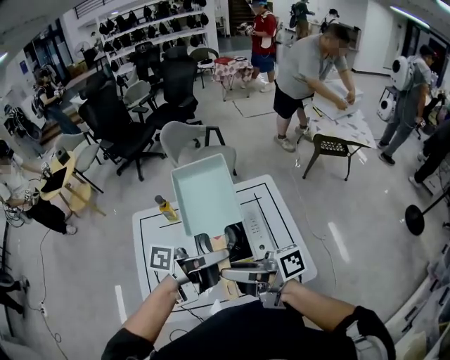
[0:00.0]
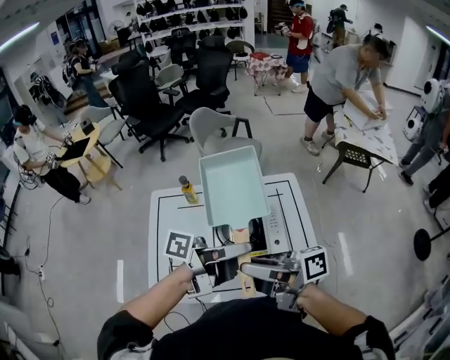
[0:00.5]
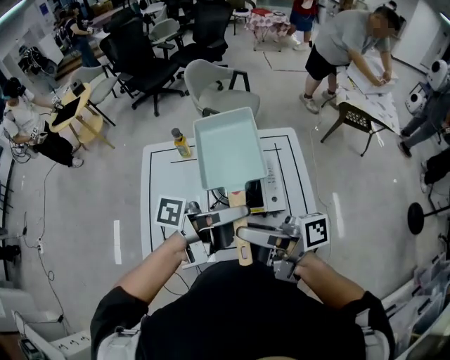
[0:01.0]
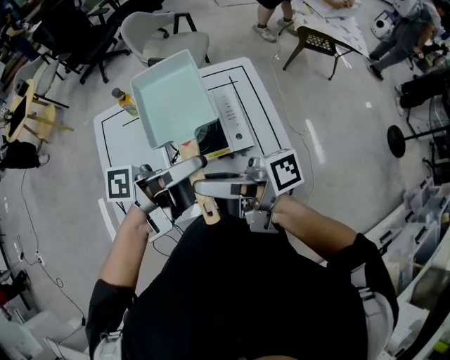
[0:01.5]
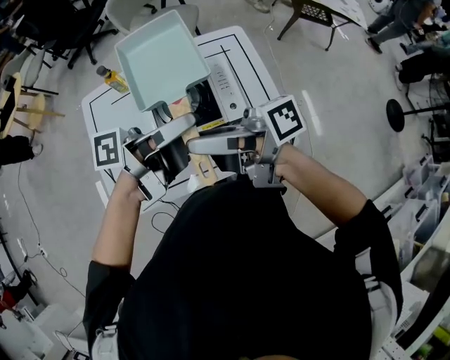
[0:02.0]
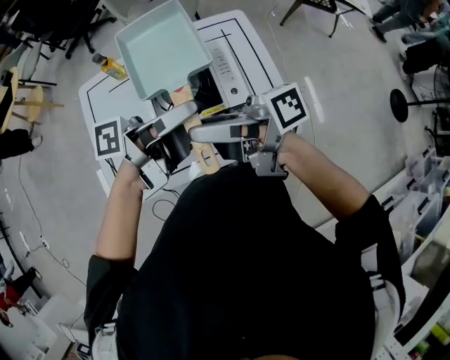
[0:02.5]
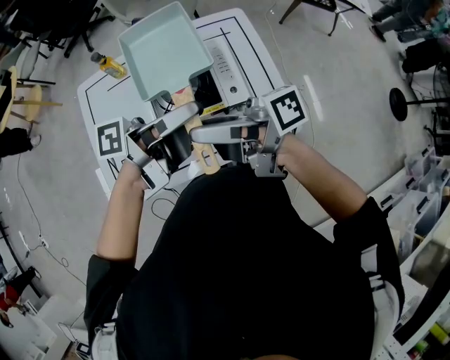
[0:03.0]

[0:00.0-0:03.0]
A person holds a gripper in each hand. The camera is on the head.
0:00.0 to 0:01.5: The grippers move only a little.
0:01.5 to 0:03.0: The left gripper shifts by about 5 cm.

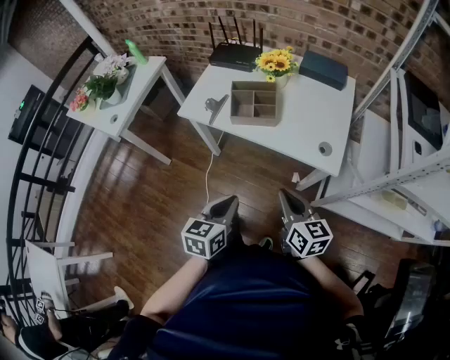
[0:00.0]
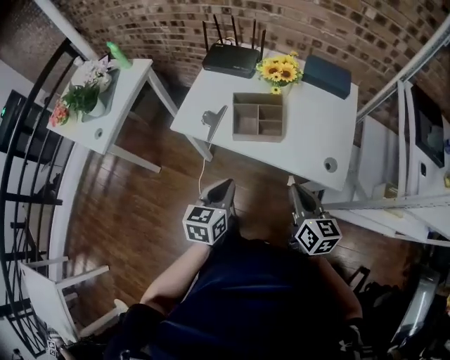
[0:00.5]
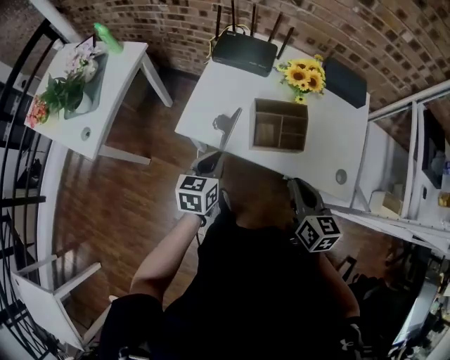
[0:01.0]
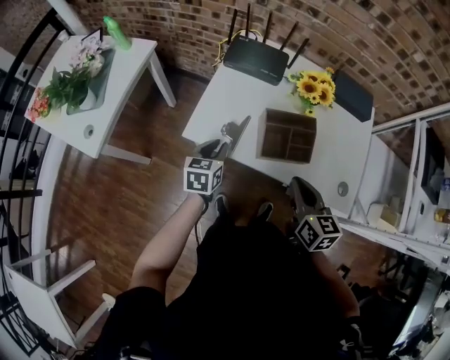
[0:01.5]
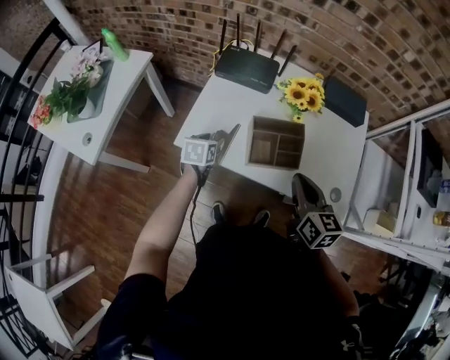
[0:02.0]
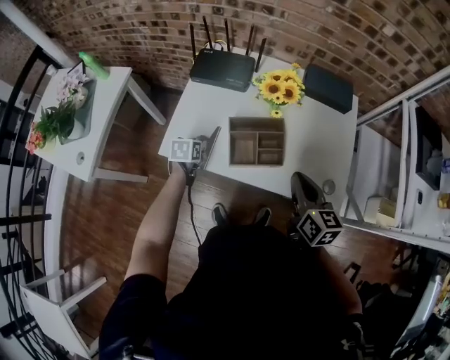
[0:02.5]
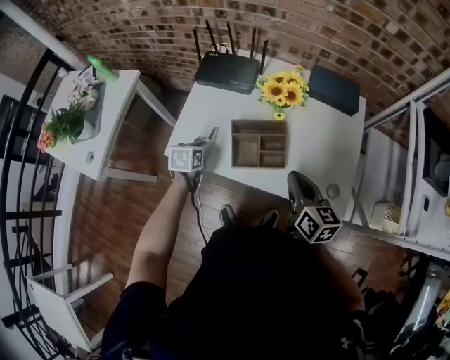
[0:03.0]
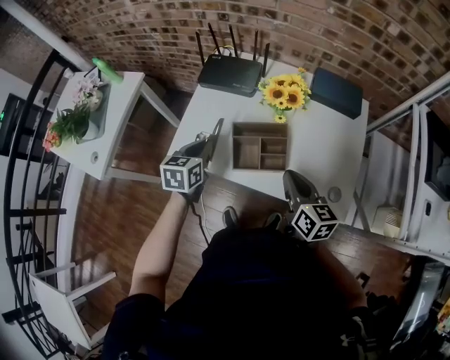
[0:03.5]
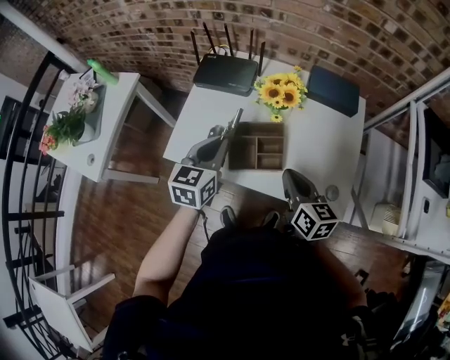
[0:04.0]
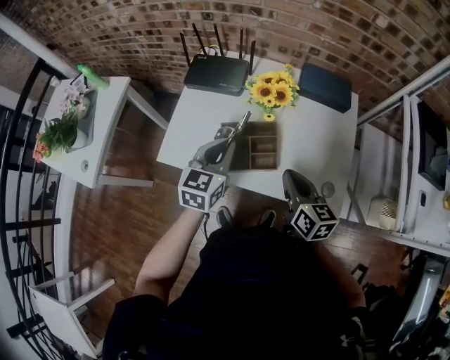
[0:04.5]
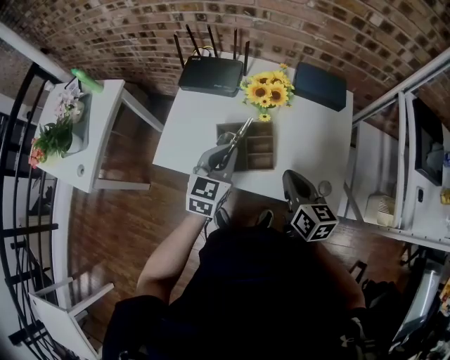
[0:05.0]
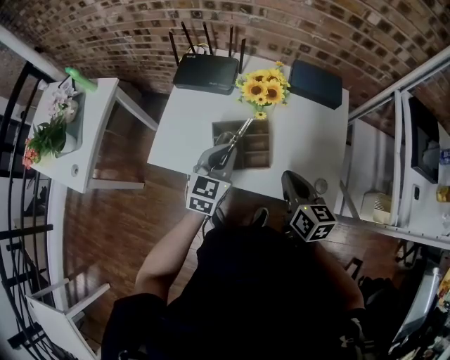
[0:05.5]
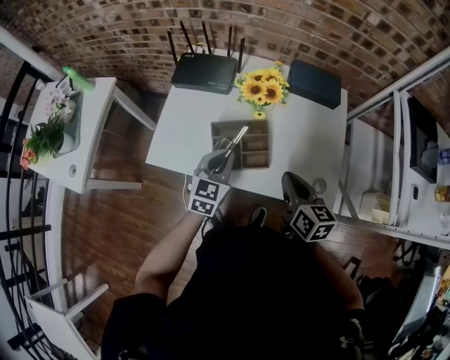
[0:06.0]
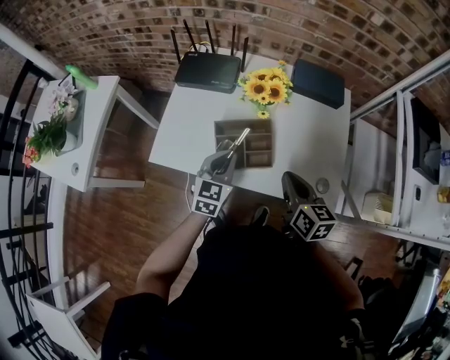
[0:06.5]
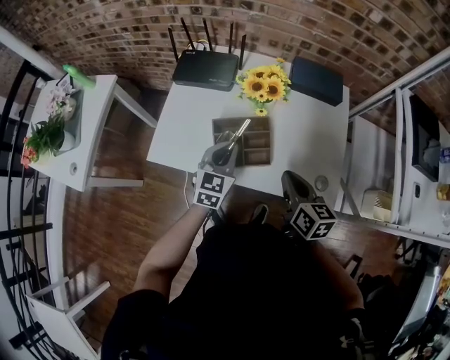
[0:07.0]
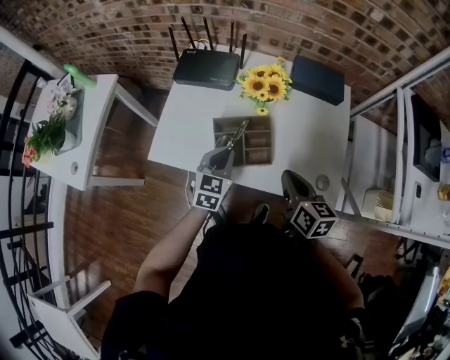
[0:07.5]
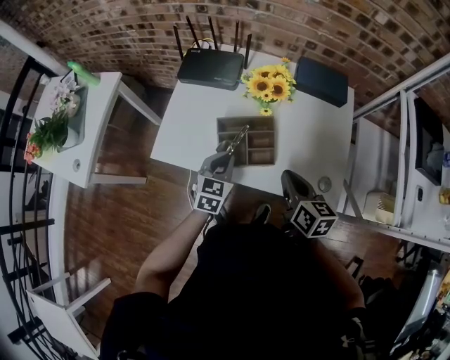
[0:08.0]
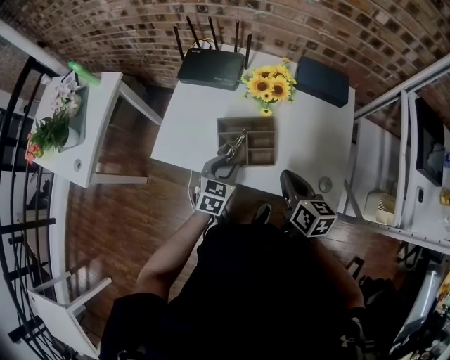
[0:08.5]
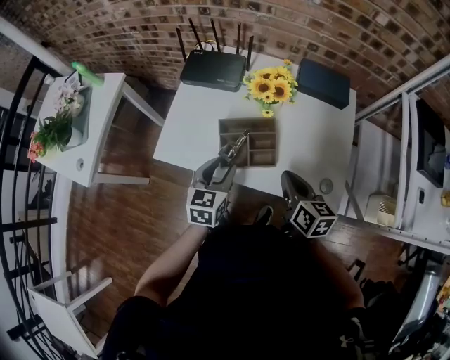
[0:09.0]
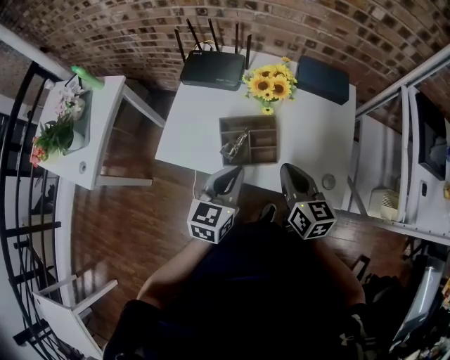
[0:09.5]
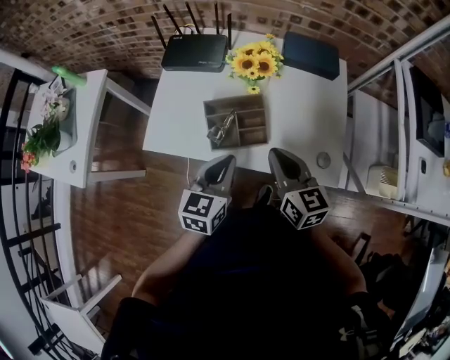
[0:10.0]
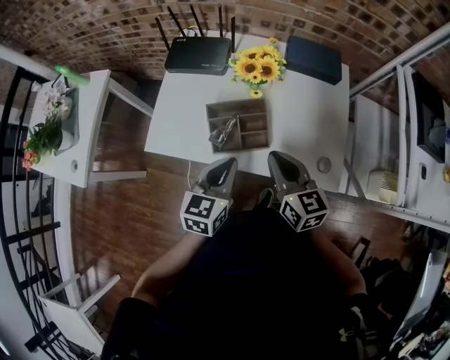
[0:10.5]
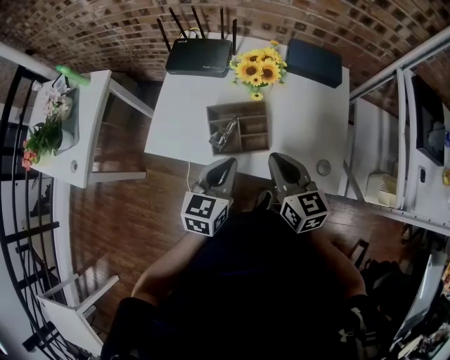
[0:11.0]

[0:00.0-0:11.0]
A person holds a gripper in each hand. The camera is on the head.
0:00.0 to 0:02.0: The right gripper heads forward, covering about 25 cm. The left gripper is displaced forward and to the left by about 50 cm, and opens.
0:02.0 to 0:03.5: The left gripper moves upward, some 10 cm, and closes up. Meanwhile the right gripper ends up approximately 5 cm from where it was.
0:03.5 to 0:05.5: The left gripper travels to the right by about 15 cm, and swivels about 30 degrees.
0:05.5 to 0:07.5: The left gripper goes some 5 cm downward.
0:07.5 to 0:09.0: The left gripper shifts by some 5 cm, and opens.
0:09.0 to 0:11.0: The left gripper moves some 5 cm, and closes its fingers.

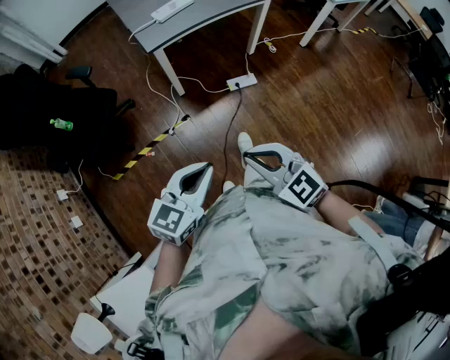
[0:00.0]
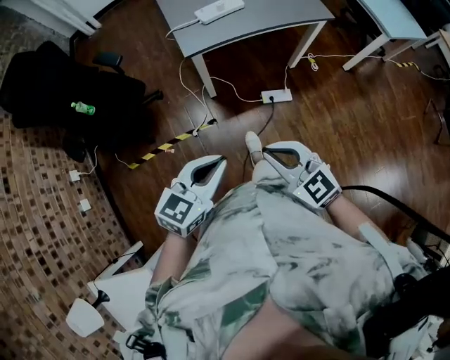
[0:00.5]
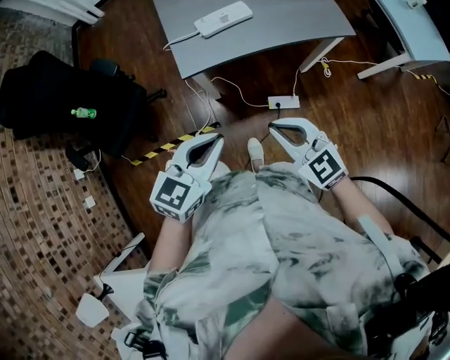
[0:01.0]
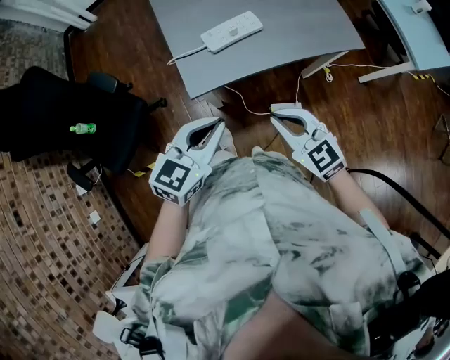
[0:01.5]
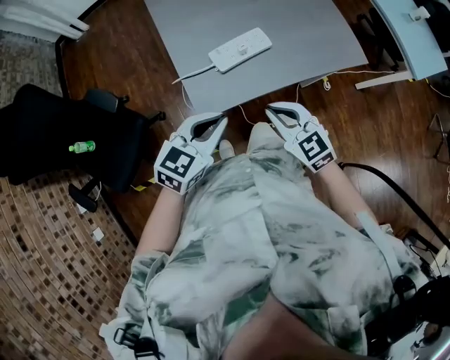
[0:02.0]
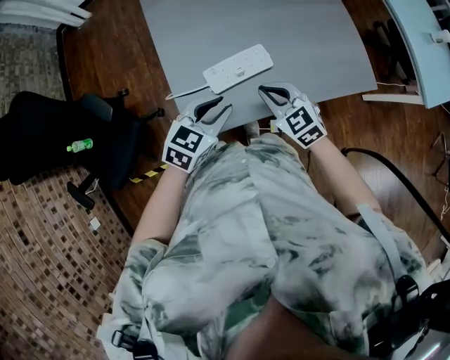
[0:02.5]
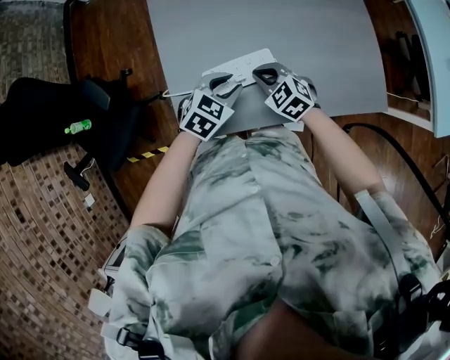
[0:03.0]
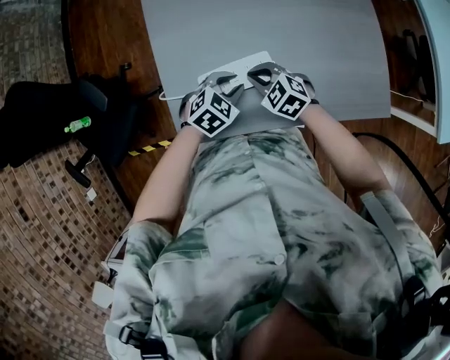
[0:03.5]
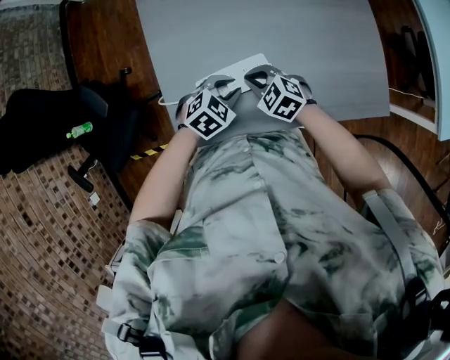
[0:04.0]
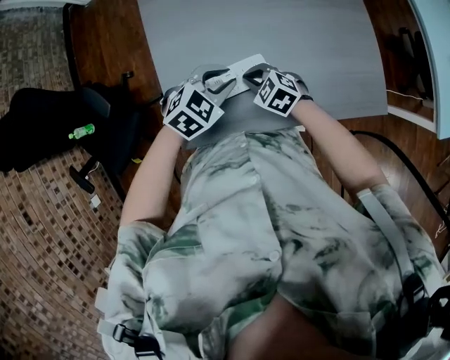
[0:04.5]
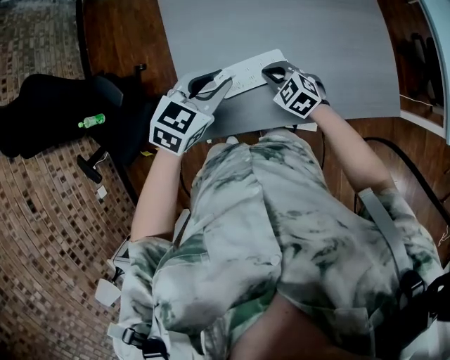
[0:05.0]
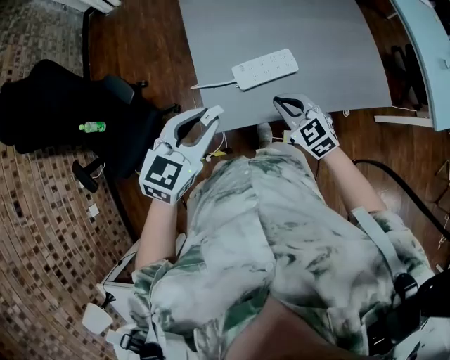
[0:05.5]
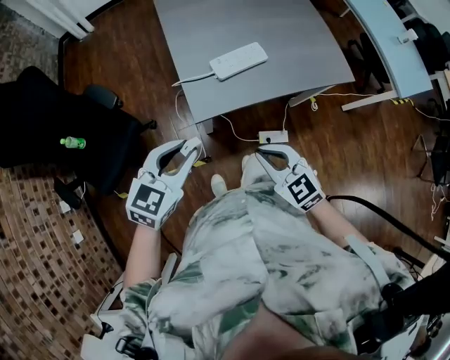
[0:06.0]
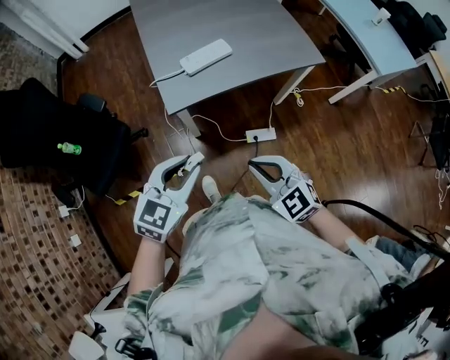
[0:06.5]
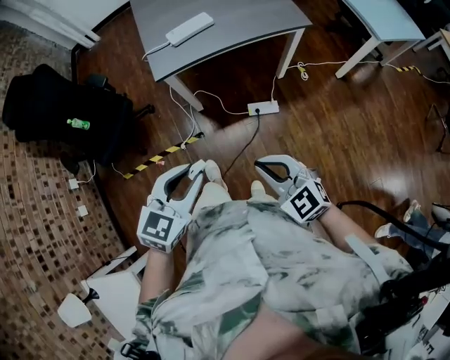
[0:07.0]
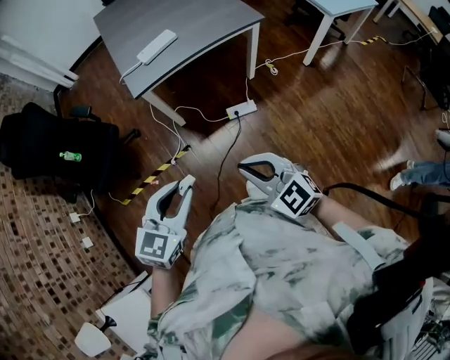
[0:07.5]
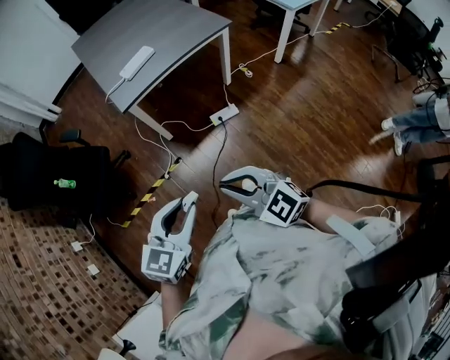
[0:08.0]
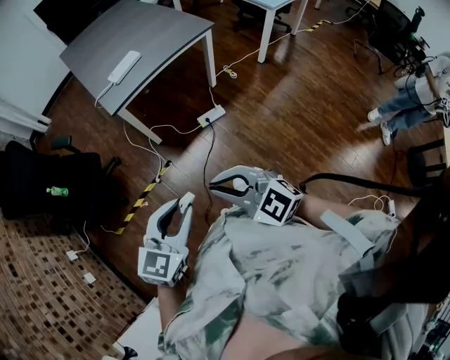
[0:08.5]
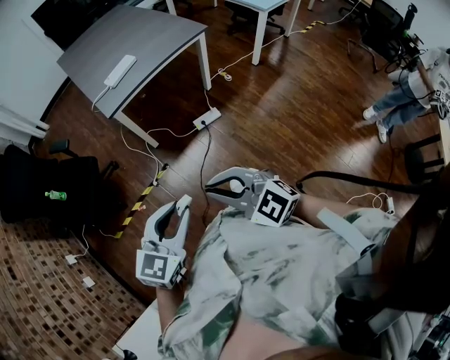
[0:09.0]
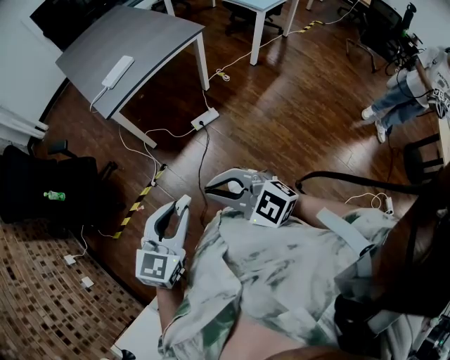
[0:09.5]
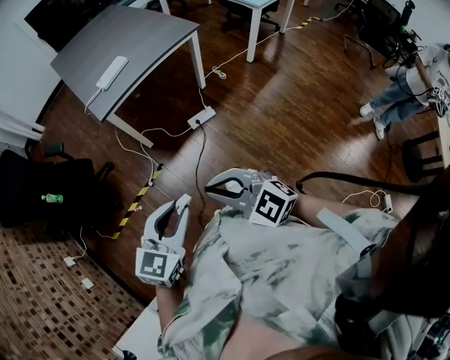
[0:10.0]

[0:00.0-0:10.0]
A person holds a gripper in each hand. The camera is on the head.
0:00.0 to 0:02.0: Both grippers are carried forward, approximately 50 cm.
0:02.0 to 0:04.0: The left gripper moves approximately 30 cm, angles its fingers downward, by approximately 30 degrees, and opens. Meanwhile the right gripper moves some 25 cm, and swivels roughly 30 degrees.
0:04.0 to 0:06.0: The right gripper changes place by some 35 cm, and swivels approximately 30 degrees. Meanwhile the left gripper changes place by approximately 40 cm, and swivels some 30 degrees.
0:06.0 to 0:08.0: The two grippers travel together, backward, about 40 cm.
0:08.0 to 0:10.0: The left gripper changes place by about 5 cm. Meanwhile the right gripper heads backward, covering some 5 cm.

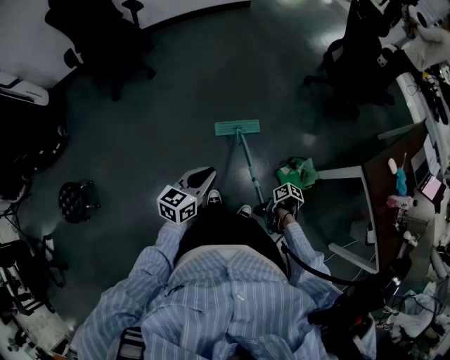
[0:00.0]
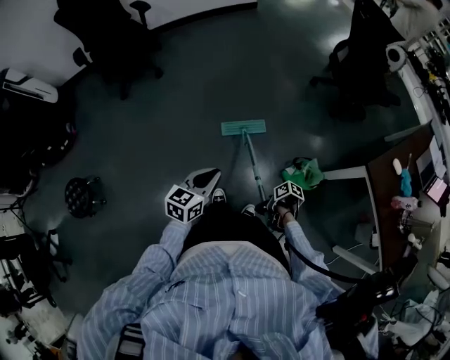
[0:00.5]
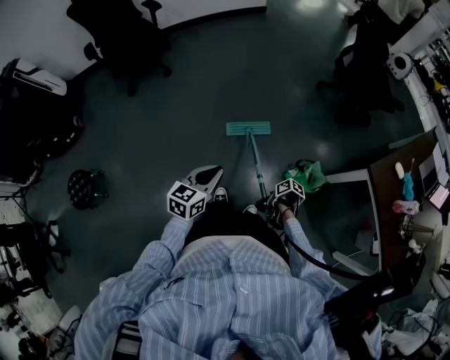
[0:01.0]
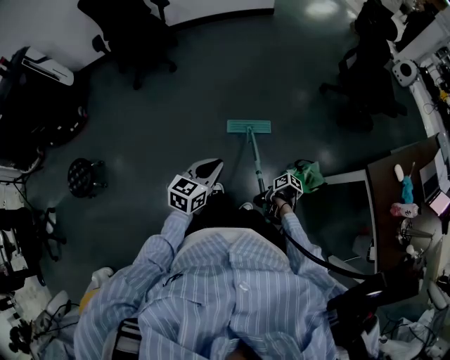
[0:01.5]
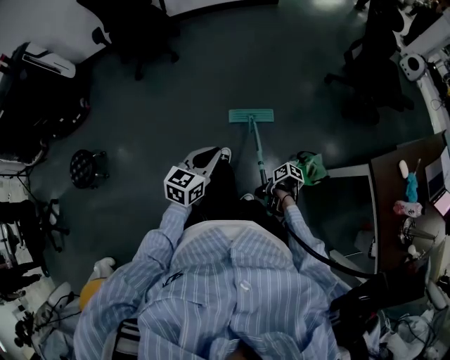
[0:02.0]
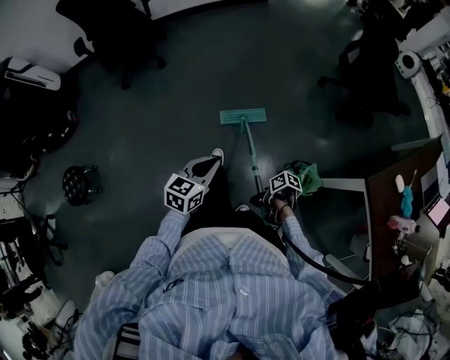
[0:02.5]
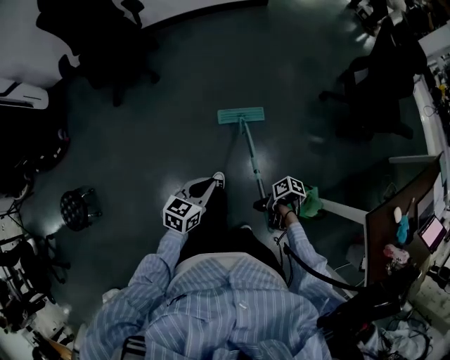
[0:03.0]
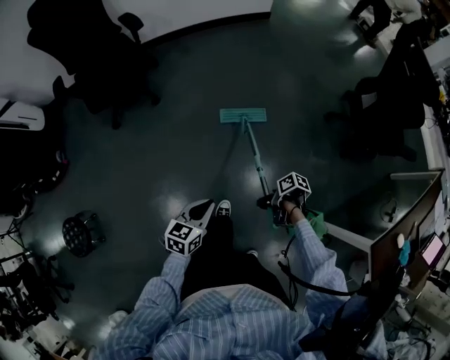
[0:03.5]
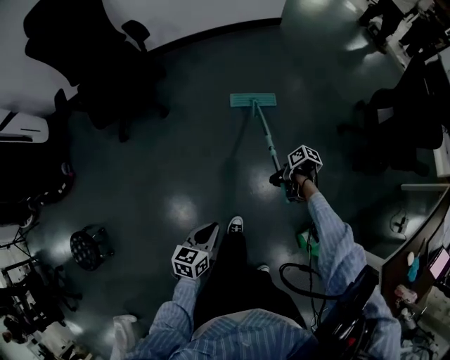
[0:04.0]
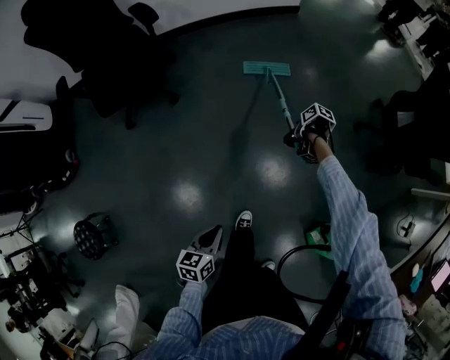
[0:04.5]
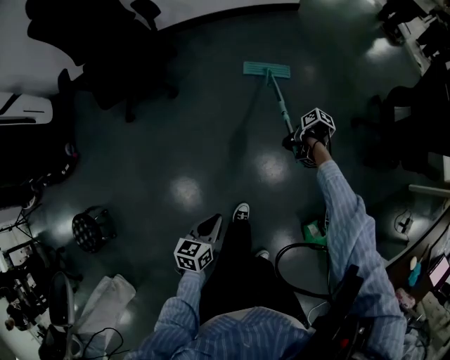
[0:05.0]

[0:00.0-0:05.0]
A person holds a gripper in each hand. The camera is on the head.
0:00.0 to 0:02.5: The left gripper moves approximately 10 cm.
0:02.5 to 0:05.0: The left gripper ends up some 35 cm from where it was, and changes its angle by approximately 20 degrees.
